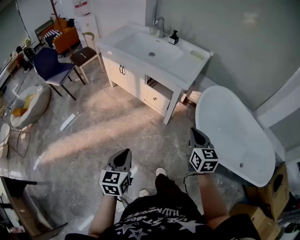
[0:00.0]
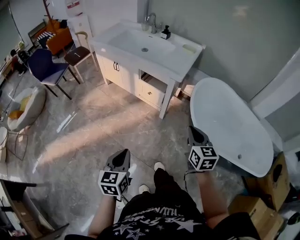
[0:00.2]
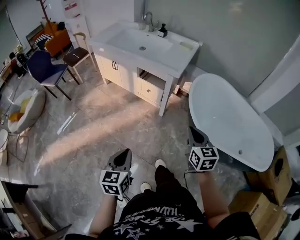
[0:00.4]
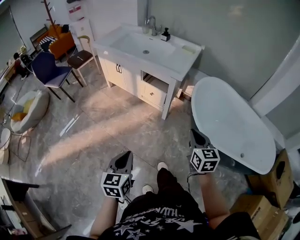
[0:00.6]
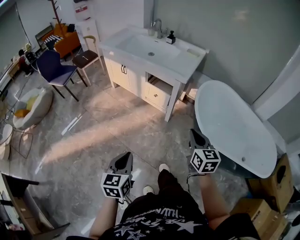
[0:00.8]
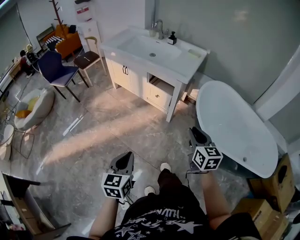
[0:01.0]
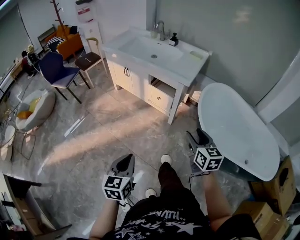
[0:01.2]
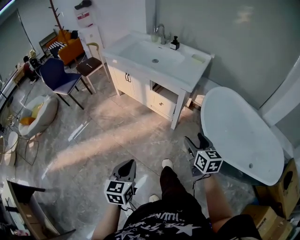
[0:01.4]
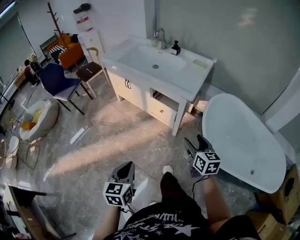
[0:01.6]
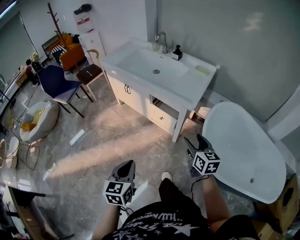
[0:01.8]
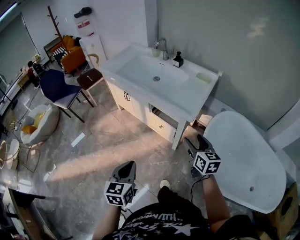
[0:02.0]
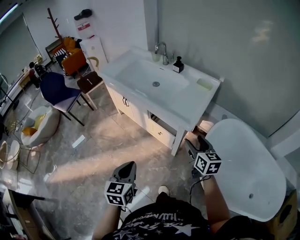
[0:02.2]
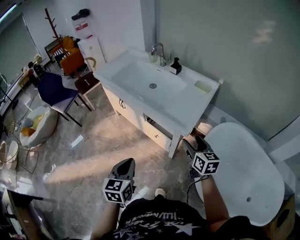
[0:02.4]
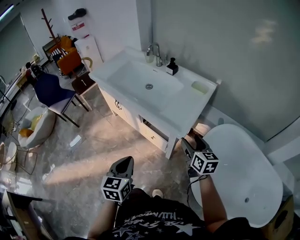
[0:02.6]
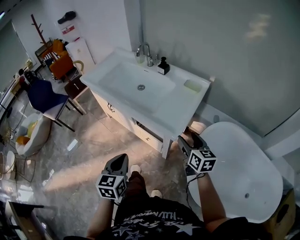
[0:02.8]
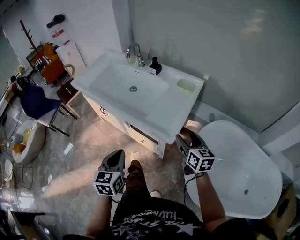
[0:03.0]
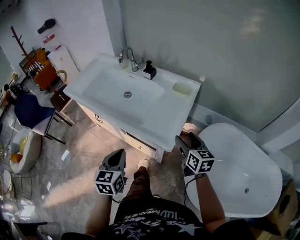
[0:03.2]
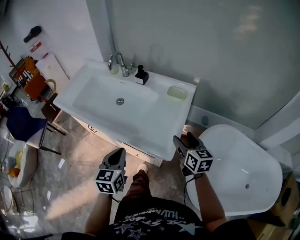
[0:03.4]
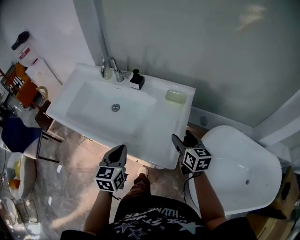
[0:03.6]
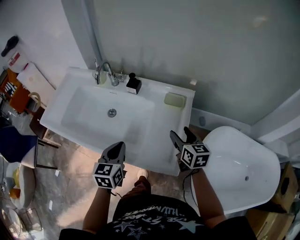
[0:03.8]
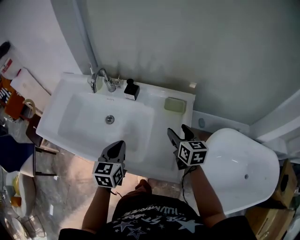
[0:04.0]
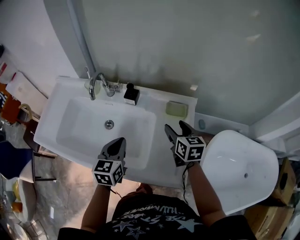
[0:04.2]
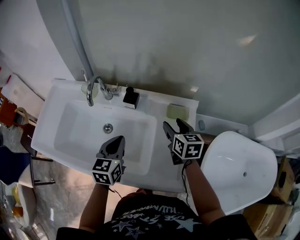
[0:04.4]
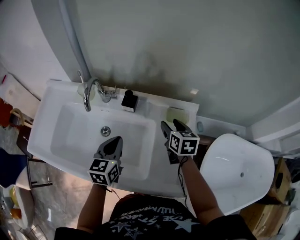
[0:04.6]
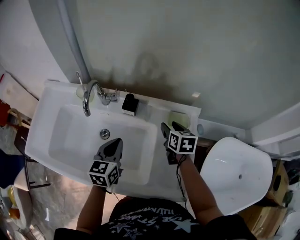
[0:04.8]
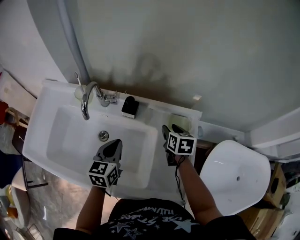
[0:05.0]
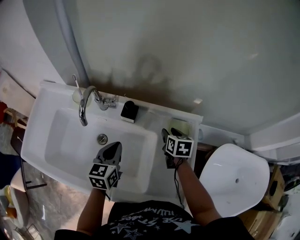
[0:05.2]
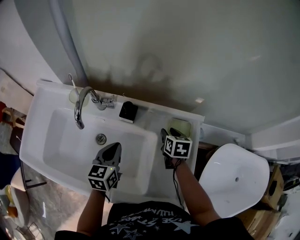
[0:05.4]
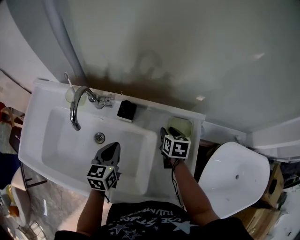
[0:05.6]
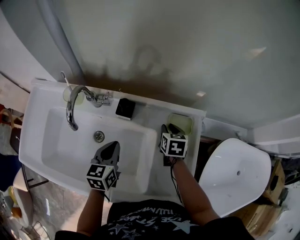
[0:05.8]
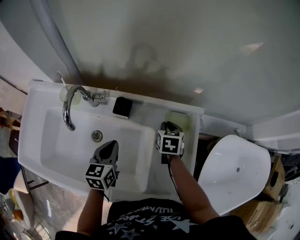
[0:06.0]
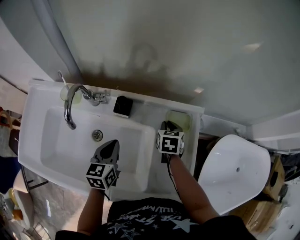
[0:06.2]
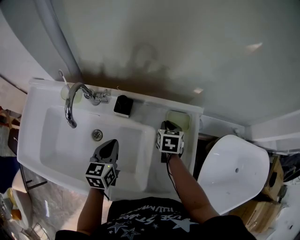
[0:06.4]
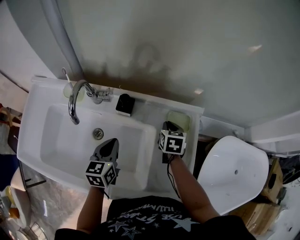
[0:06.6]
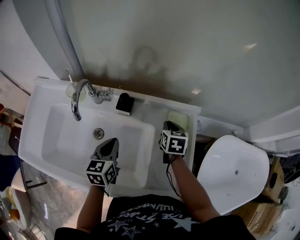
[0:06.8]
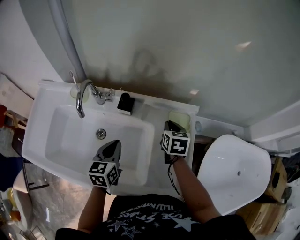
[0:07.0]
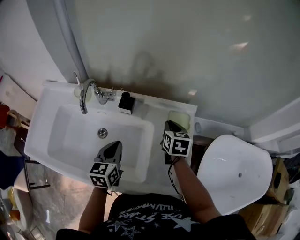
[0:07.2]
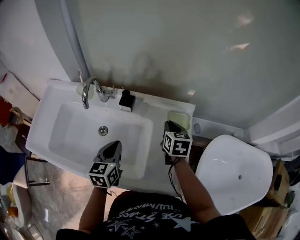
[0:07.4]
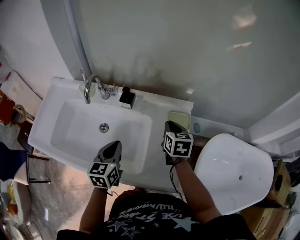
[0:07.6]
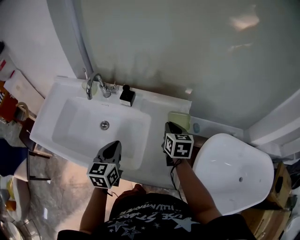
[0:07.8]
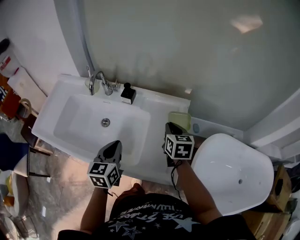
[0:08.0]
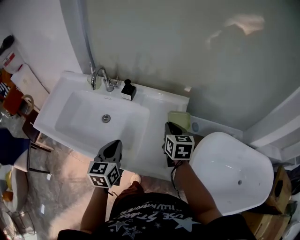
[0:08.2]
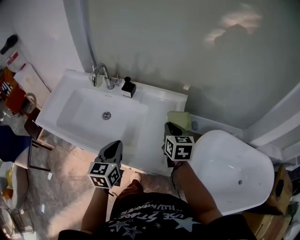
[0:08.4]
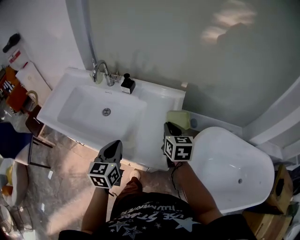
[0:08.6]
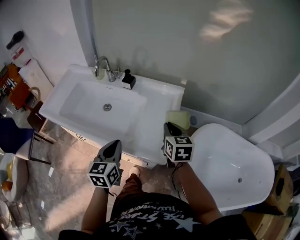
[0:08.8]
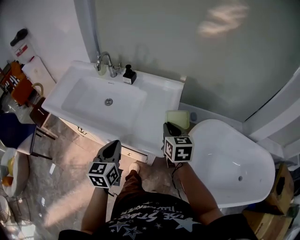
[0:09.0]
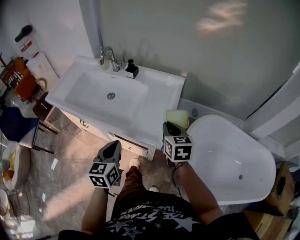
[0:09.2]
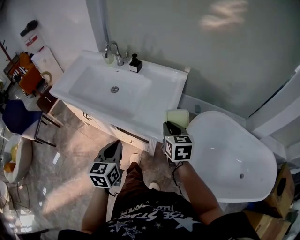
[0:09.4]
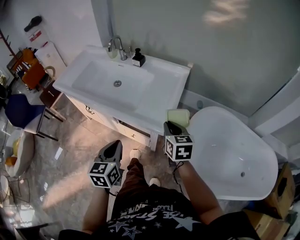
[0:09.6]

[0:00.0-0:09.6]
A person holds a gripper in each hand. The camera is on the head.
0:00.0 to 0:01.6: The left gripper moves about 10 cm backward and comes back. Meanwhile the right gripper moves some 10 cm backward and comes back, and opens its fingers.
0:01.6 to 0:03.2: The right gripper moves forward and to the right, some 40 cm, while the left gripper heads forward, covering some 40 cm.
0:03.2 to 0:04.8: Both grippers move forward, approximately 40 cm. The right gripper swivels some 30 degrees. Meanwhile the left gripper swivels approximately 20 degrees.
0:04.8 to 0:06.4: Both grippers move downward, roughly 5 cm. The right gripper closes up.
0:06.4 to 0:08.0: The right gripper travels upward and backward by about 20 cm, and turns by approximately 20 degrees, while the left gripper moves backward, upward and to the right, some 20 cm.
0:08.0 to 0:09.6: The two grippers go about 30 cm backward.

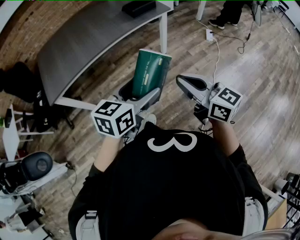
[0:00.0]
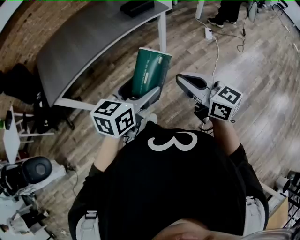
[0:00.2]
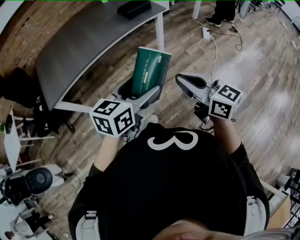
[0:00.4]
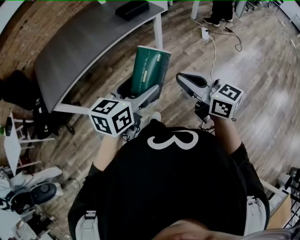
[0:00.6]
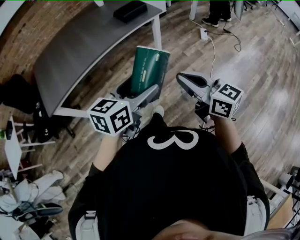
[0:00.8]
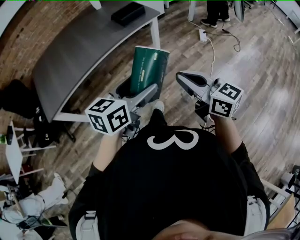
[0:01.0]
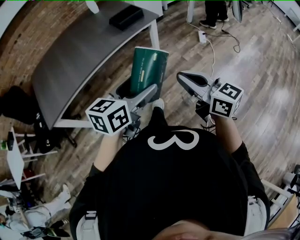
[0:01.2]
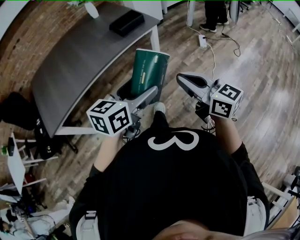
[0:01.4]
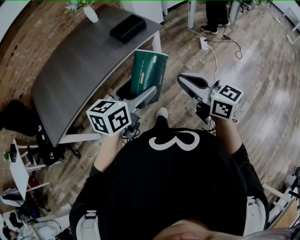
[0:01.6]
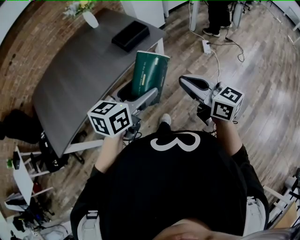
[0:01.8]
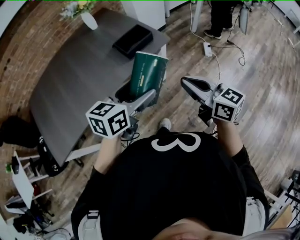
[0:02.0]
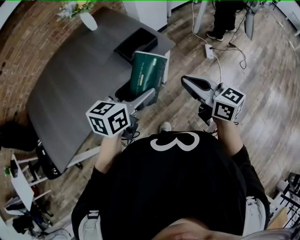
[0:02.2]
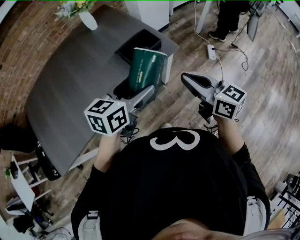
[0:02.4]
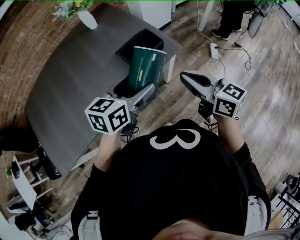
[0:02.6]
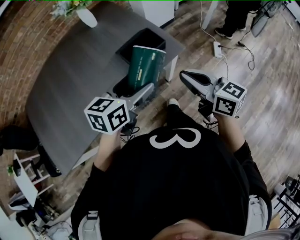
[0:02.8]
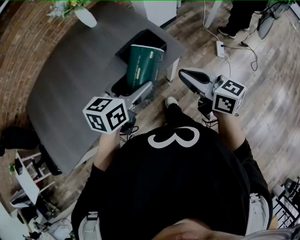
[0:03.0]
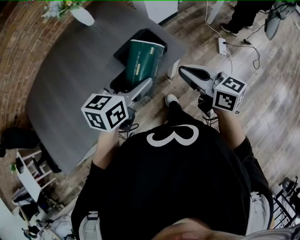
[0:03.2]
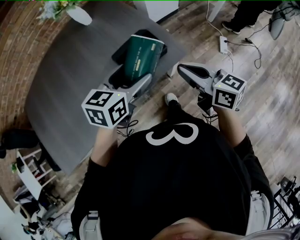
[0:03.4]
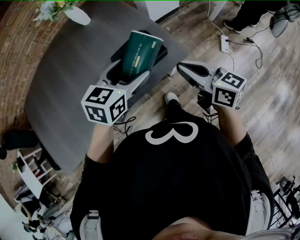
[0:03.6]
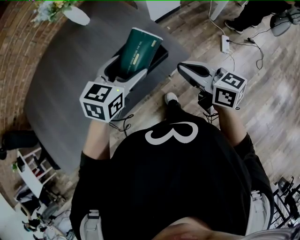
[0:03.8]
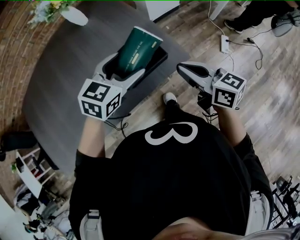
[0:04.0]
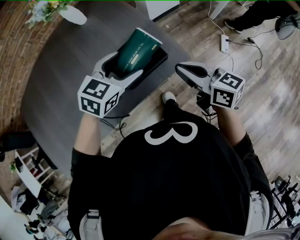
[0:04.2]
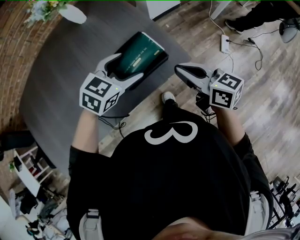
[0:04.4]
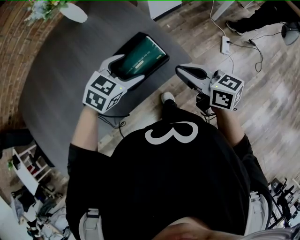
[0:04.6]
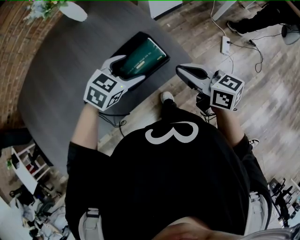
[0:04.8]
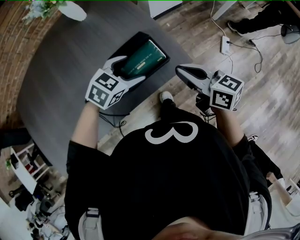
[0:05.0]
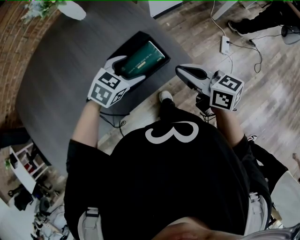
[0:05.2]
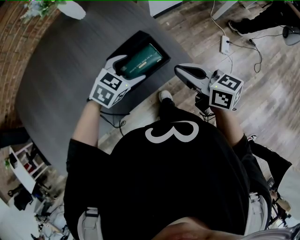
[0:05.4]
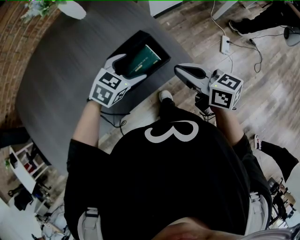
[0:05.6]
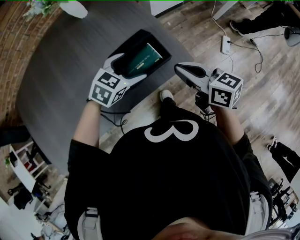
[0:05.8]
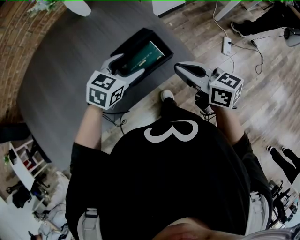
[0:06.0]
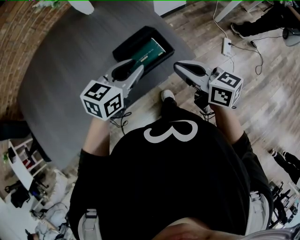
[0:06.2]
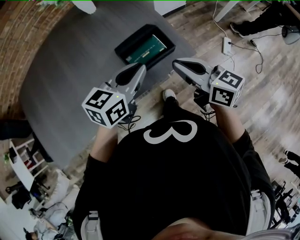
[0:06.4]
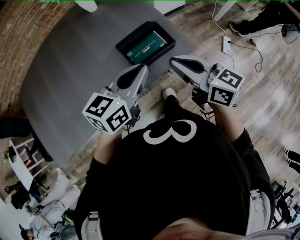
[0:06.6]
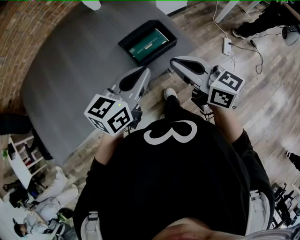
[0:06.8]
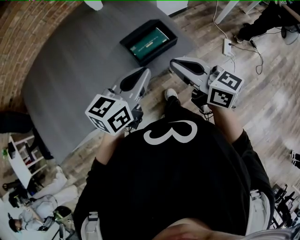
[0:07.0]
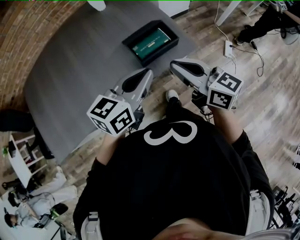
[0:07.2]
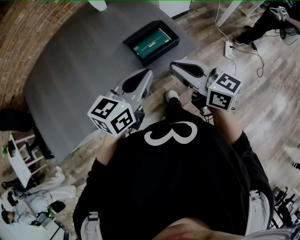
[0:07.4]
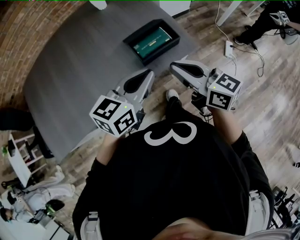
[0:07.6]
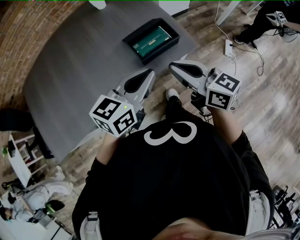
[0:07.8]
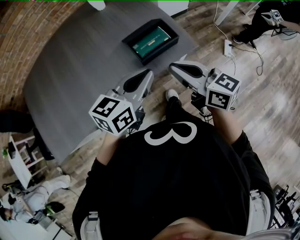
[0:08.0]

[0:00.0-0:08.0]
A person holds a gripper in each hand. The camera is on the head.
0:00.0 to 0:01.6: The two grippers go approximately 20 cm forward.
0:01.6 to 0:03.2: The grippers both shift forward by some 40 cm.
0:03.2 to 0:04.8: The left gripper travels forward and downward by roughly 15 cm, and rotates some 30 degrees. Meanwhile the right gripper goes some 10 cm forward.
0:04.8 to 0:06.4: The right gripper changes place by about 5 cm. Meanwhile the left gripper is displaced upward and backward by roughly 10 cm, rotates about 40 degrees, and closes its fingers.
0:06.4 to 0:08.0: The grippers both shift backward by about 10 cm.

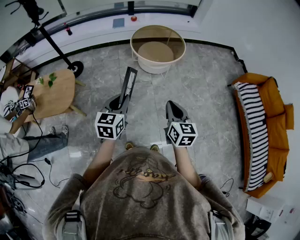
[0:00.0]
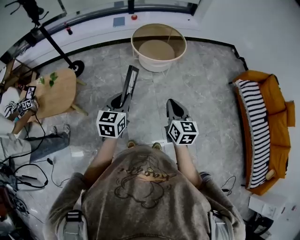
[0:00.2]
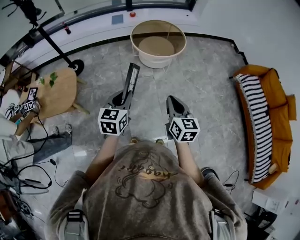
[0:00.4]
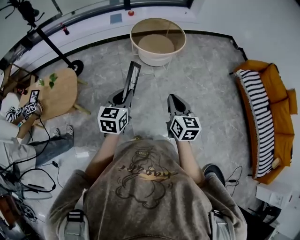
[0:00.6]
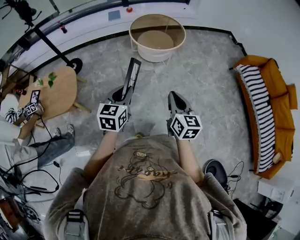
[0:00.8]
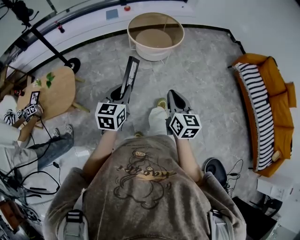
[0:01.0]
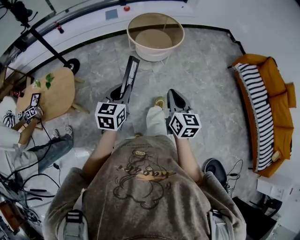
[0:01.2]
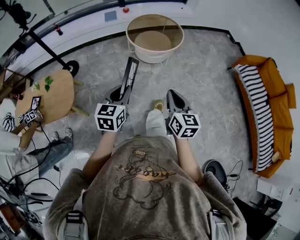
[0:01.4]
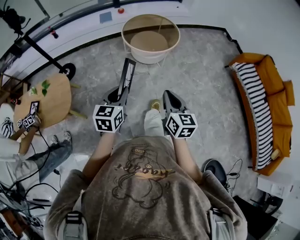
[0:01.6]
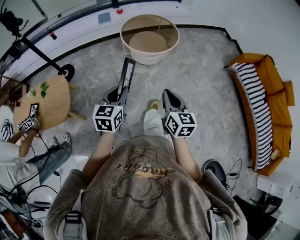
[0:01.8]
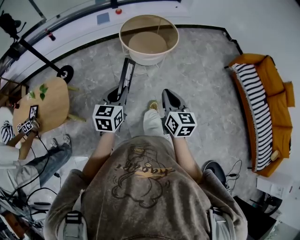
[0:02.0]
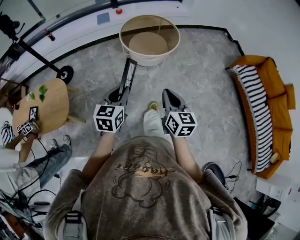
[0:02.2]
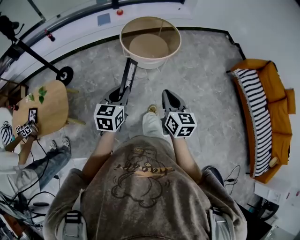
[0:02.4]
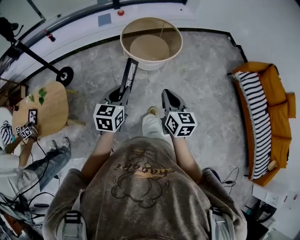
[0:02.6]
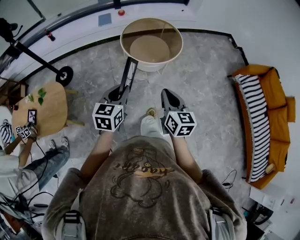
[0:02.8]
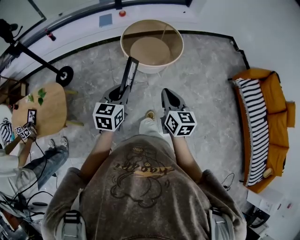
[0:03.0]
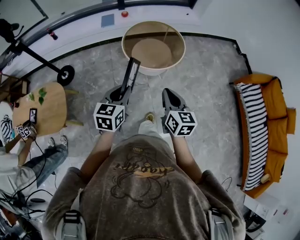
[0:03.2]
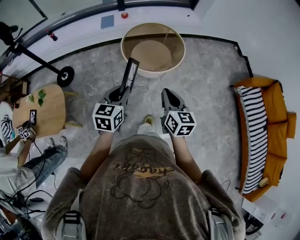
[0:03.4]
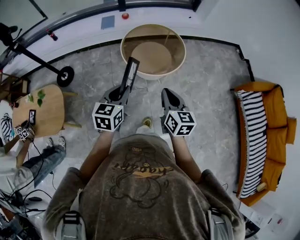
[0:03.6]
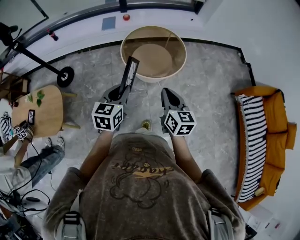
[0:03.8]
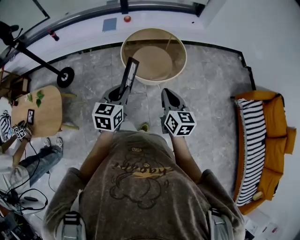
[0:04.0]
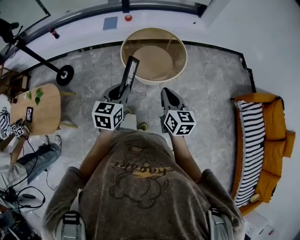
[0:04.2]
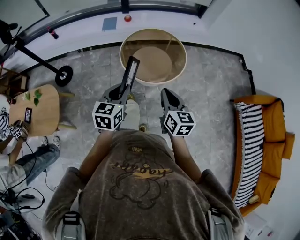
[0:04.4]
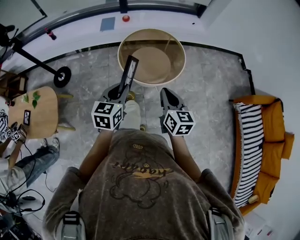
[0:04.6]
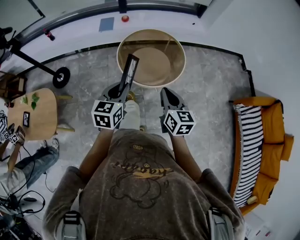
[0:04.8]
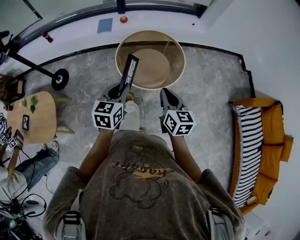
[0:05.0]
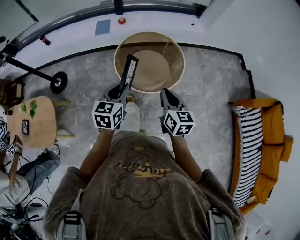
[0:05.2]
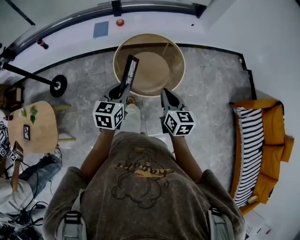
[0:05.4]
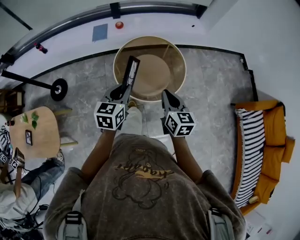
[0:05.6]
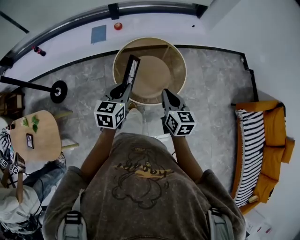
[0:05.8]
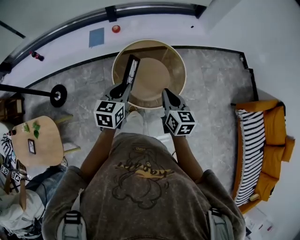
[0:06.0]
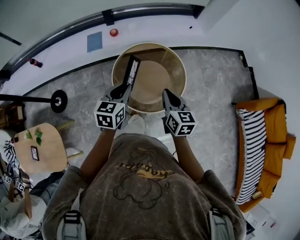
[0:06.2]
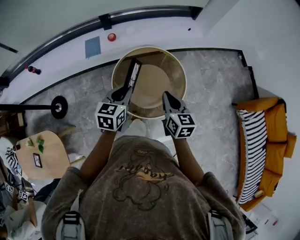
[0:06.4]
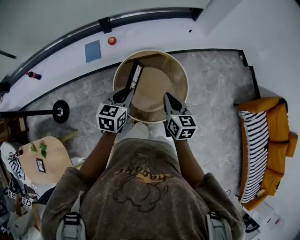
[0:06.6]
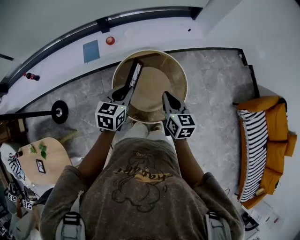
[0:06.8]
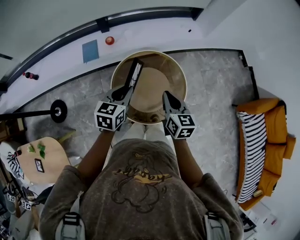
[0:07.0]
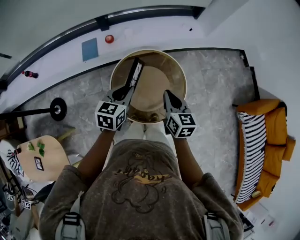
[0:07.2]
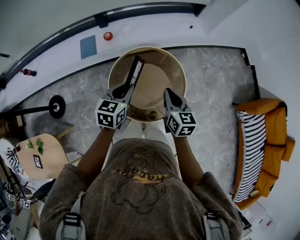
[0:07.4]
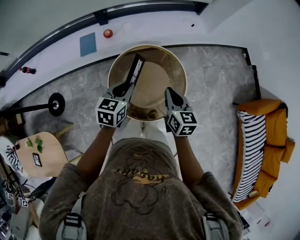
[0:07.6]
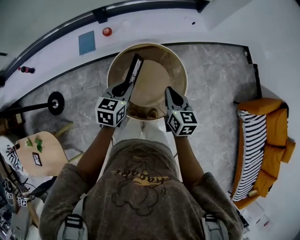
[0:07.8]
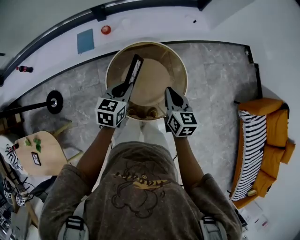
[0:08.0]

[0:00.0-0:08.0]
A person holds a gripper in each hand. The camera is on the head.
0:00.0 to 0:01.6: The left gripper changes place by about 5 cm, while the right gripper travels to the left by roughly 5 cm.
0:01.6 to 0:03.2: The grippers both shift forward by about 20 cm.
0:03.2 to 0:04.8: The two grippers go approximately 15 cm forward.
0:04.8 to 0:06.4: The two grippers go approximately 25 cm forward.
0:06.4 to 0:08.0: The left gripper travels forward and downward by approximately 10 cm, while the right gripper moves forward, roughly 10 cm.
